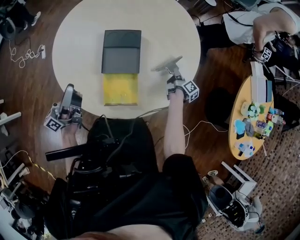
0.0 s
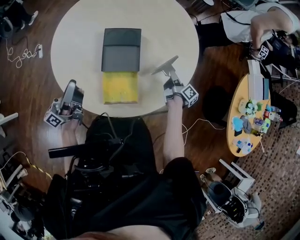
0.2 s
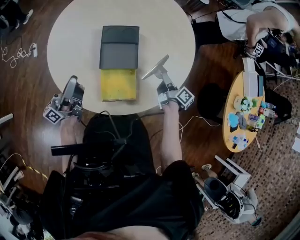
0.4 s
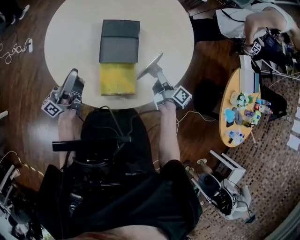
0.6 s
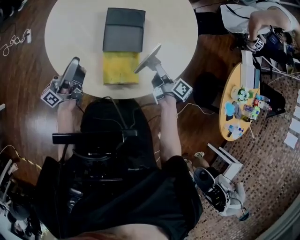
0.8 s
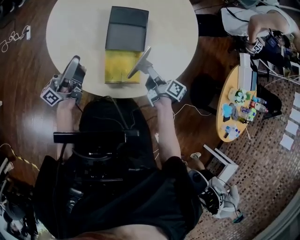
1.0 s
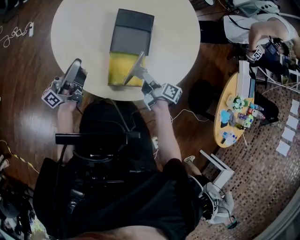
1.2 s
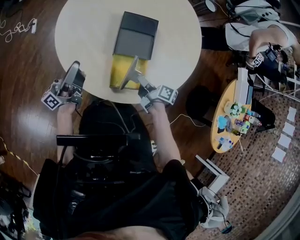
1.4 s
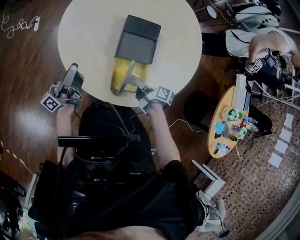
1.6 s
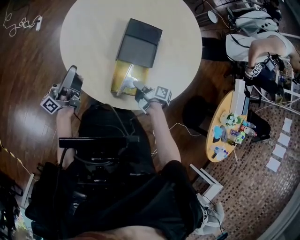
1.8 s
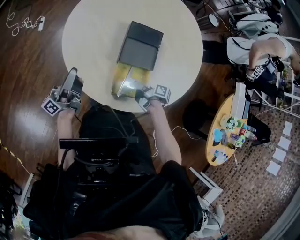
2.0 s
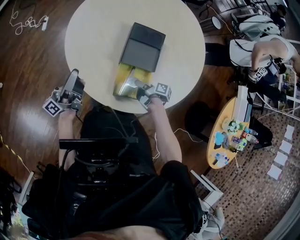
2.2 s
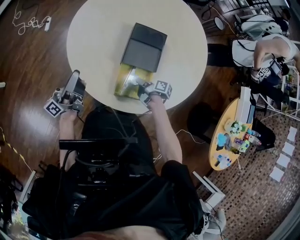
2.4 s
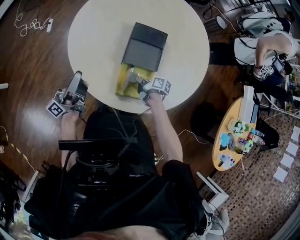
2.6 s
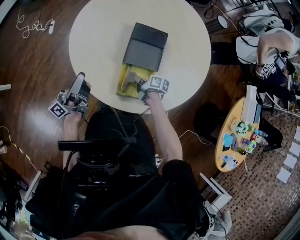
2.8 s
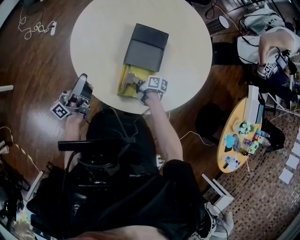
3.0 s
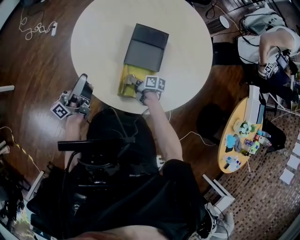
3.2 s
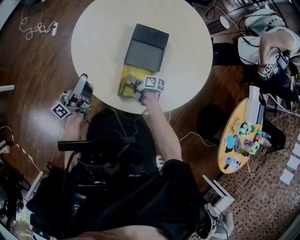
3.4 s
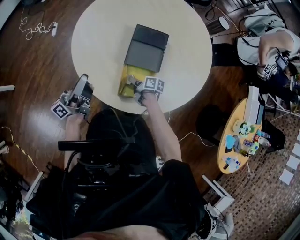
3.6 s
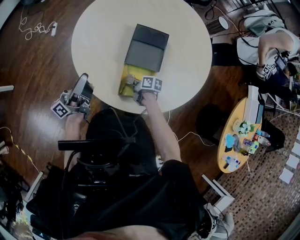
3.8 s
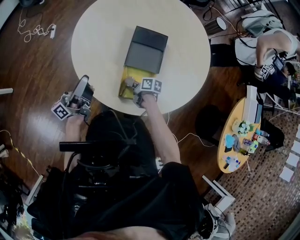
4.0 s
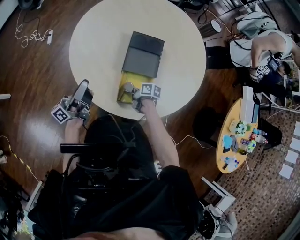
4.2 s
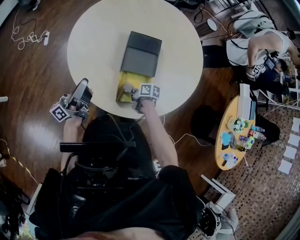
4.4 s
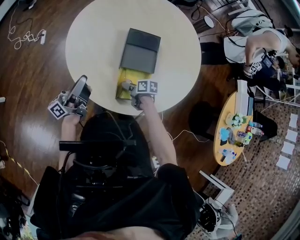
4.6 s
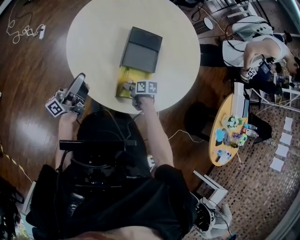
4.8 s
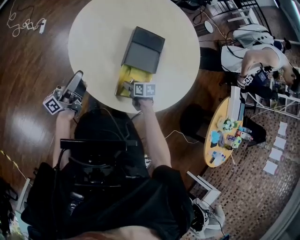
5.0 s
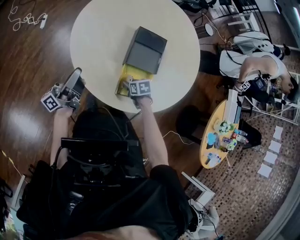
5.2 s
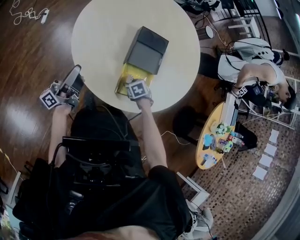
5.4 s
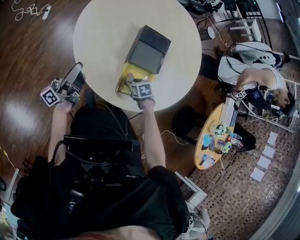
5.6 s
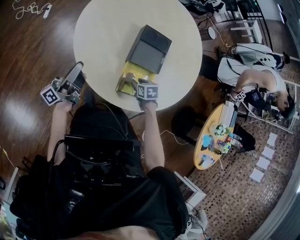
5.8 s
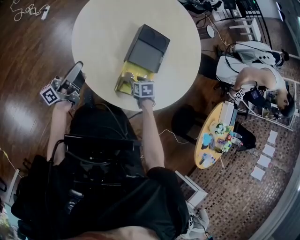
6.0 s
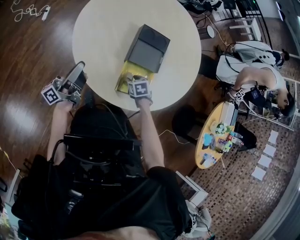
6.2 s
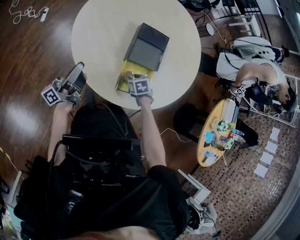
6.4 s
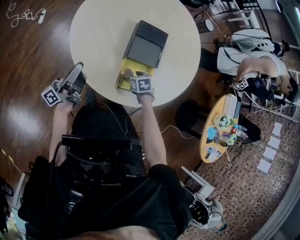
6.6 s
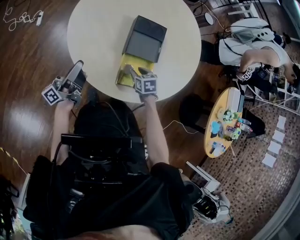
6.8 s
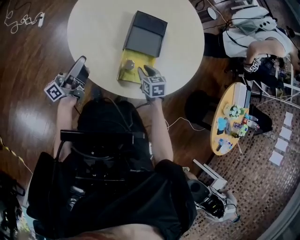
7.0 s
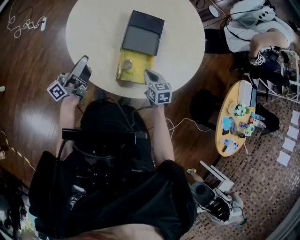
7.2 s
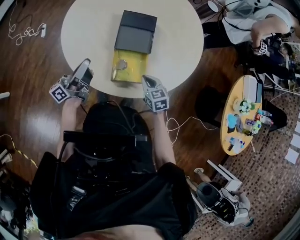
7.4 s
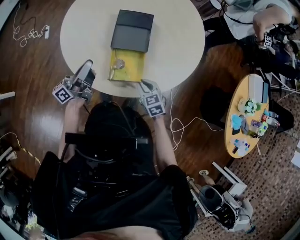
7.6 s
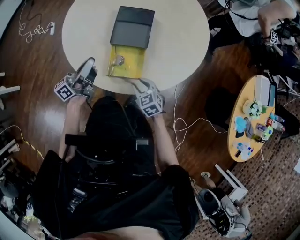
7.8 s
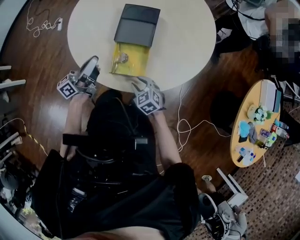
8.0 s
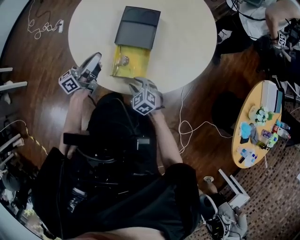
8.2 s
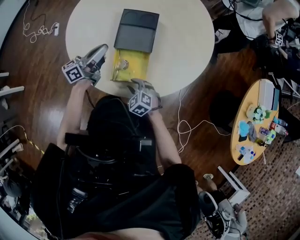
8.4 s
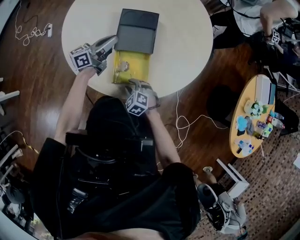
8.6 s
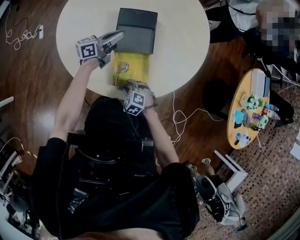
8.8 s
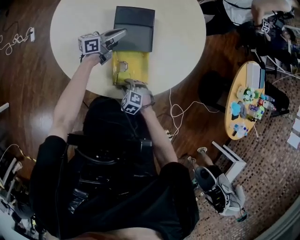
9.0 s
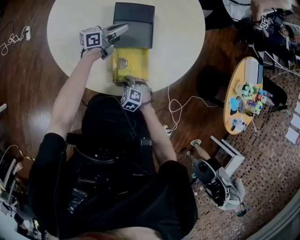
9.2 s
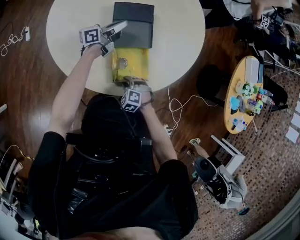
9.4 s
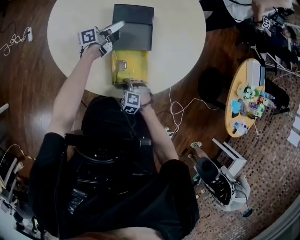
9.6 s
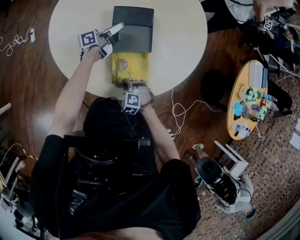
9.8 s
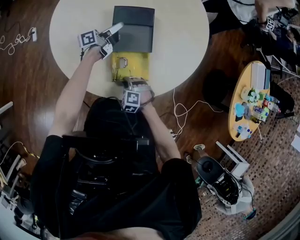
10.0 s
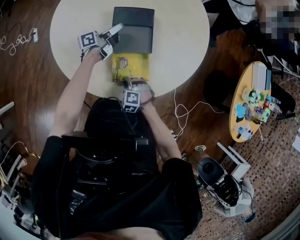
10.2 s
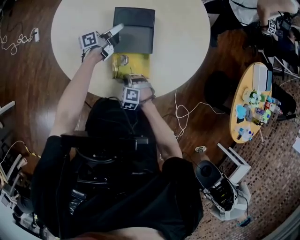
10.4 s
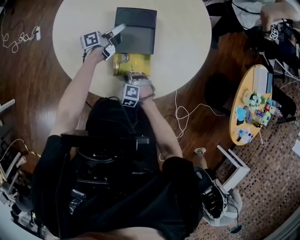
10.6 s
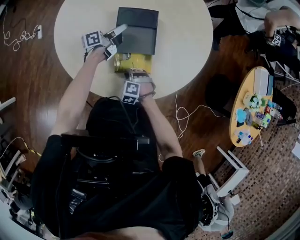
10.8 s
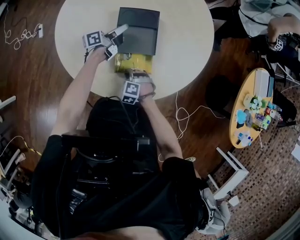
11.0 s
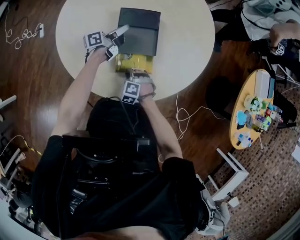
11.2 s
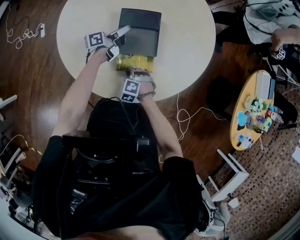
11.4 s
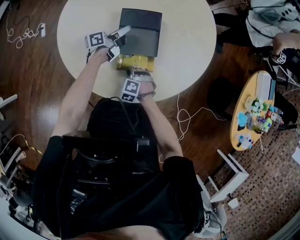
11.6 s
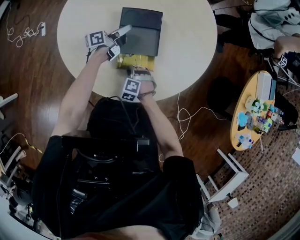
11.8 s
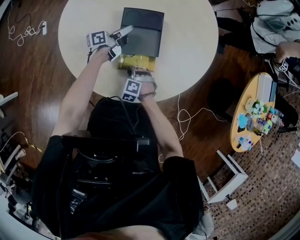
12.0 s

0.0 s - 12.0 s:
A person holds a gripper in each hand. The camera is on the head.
0.0 s - 1.6 s: The right gripper ends up approximately 35 cm from where it was, and swivels approximately 40 degrees; the left gripper ends up about 10 cm from where it was.
1.6 s - 3.0 s: The right gripper goes approximately 10 cm downward and forward.
3.0 s - 4.4 s: The right gripper opens up.
4.4 s - 6.0 s: The left gripper ends up roughly 5 cm from where it was. Meanwhile the right gripper swivels about 50 degrees.
6.0 s - 7.6 s: The left gripper is displaced to the right by some 15 cm. Meanwhile the right gripper moves backward, to the right and upward, roughly 15 cm, turns by some 30 degrees, and closes.
7.6 s - 9.0 s: The left gripper goes some 25 cm forward, downward and to the right, and turns by roughly 30 degrees; the right gripper shifts roughly 15 cm to the left and downward, and turns by approximately 40 degrees.
9.0 s - 10.4 s: The left gripper moves roughly 5 cm, and rotates roughly 20 degrees. The right gripper closes its fingers.
10.4 s - 12.0 s: The right gripper moves forward, approximately 5 cm.

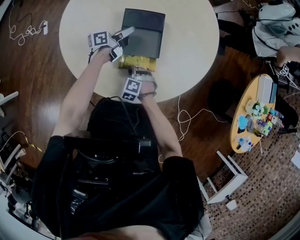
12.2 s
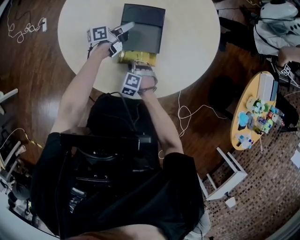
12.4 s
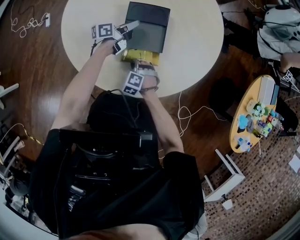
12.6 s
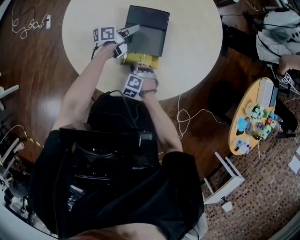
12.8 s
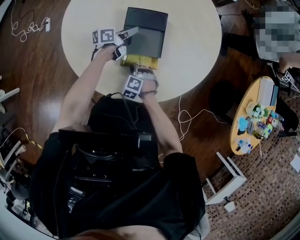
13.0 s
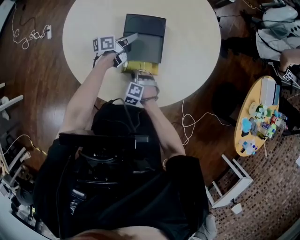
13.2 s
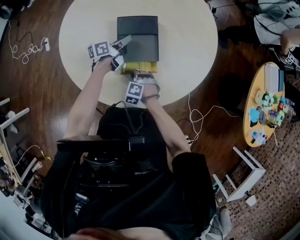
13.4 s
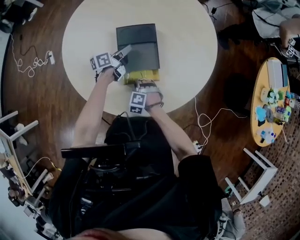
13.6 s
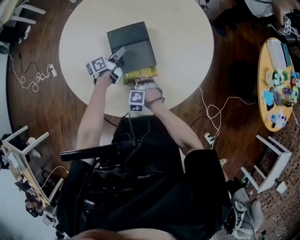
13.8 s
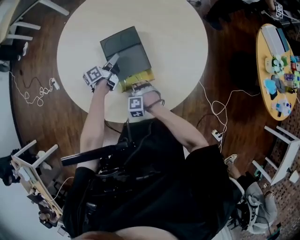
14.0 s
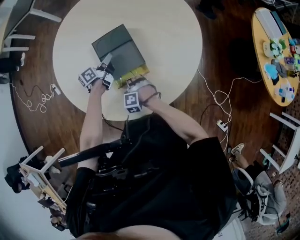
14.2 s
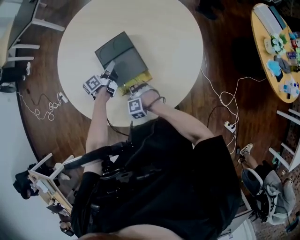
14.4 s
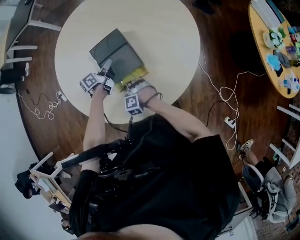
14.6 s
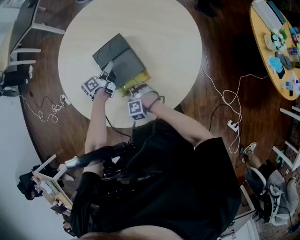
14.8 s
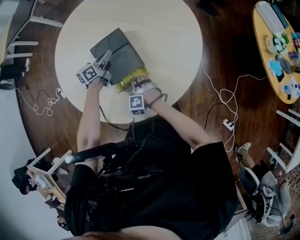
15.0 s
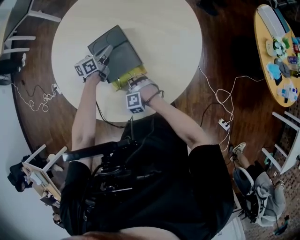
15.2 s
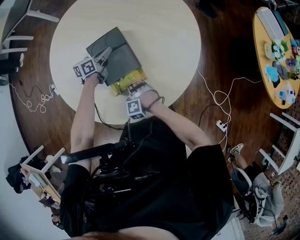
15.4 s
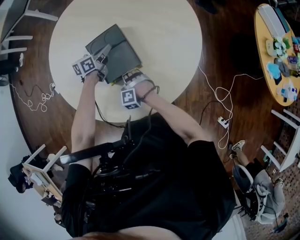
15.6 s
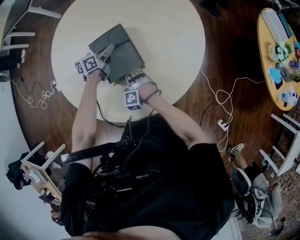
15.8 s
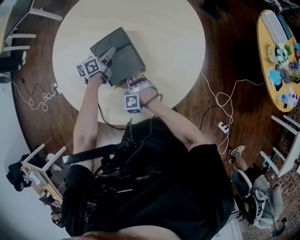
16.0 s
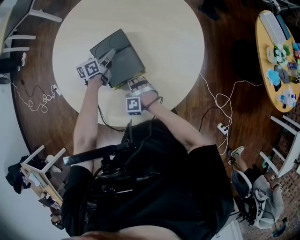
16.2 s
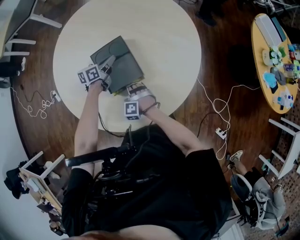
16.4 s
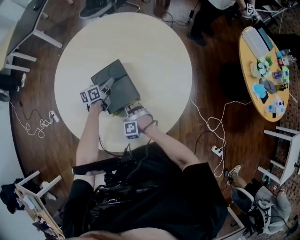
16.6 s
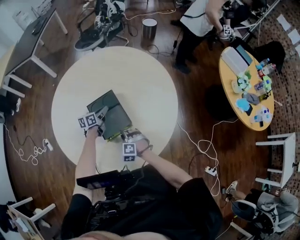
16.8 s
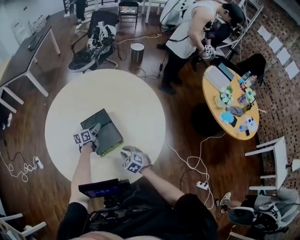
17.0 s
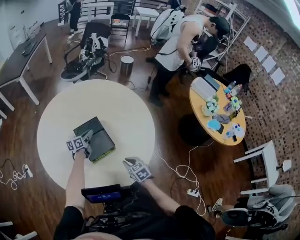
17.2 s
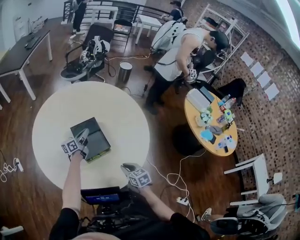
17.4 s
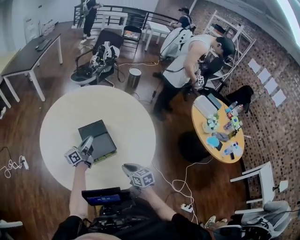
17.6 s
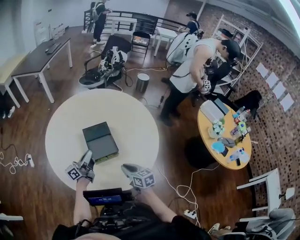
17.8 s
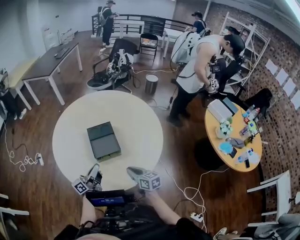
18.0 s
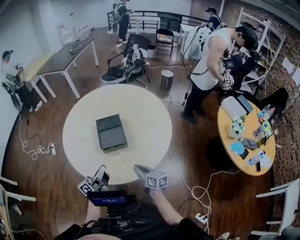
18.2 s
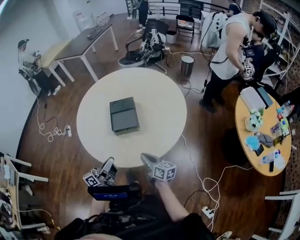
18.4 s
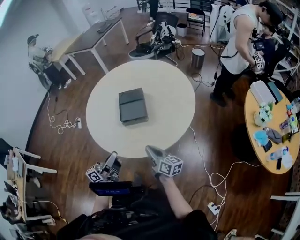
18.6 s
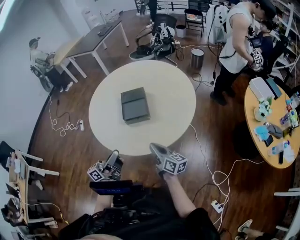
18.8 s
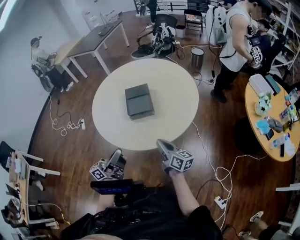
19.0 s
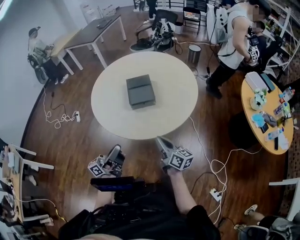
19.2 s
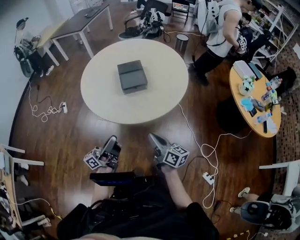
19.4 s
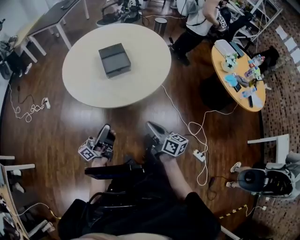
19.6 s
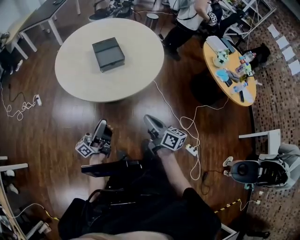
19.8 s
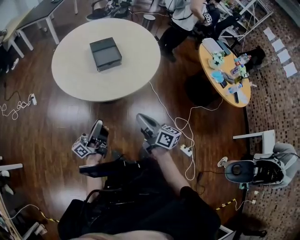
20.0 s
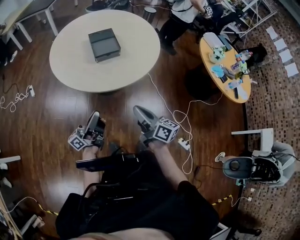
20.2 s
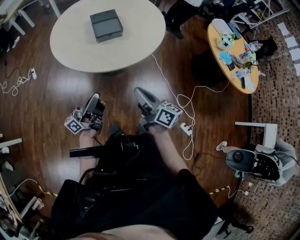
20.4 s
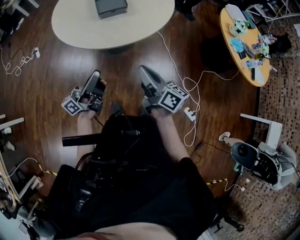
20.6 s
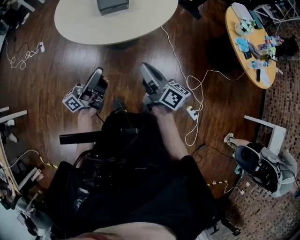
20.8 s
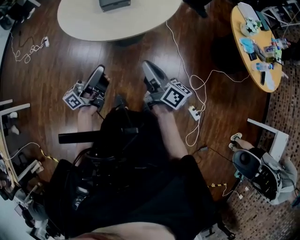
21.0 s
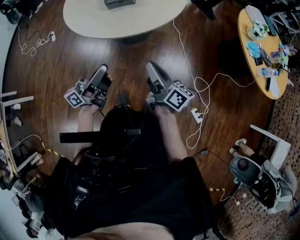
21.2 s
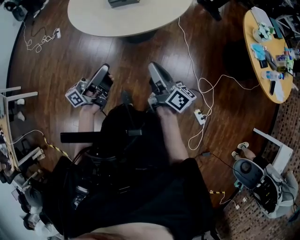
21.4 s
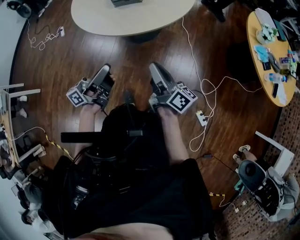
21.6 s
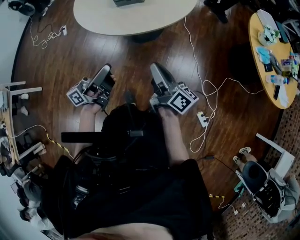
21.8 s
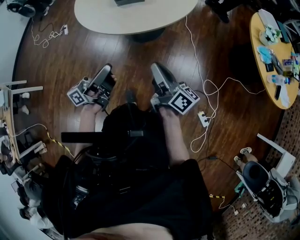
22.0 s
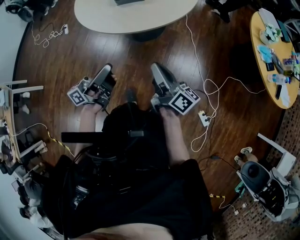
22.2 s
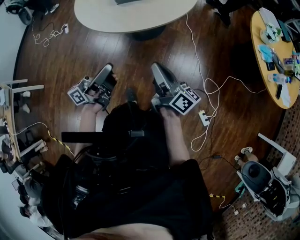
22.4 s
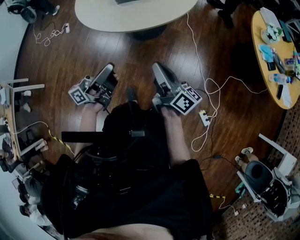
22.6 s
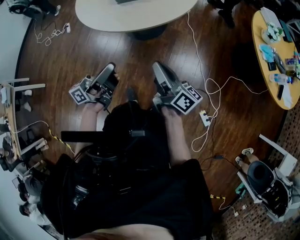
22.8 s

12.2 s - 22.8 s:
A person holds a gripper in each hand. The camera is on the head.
12.2 s - 13.8 s: The grippers move only a little.
13.8 s - 15.2 s: The left gripper shifts by roughly 5 cm, and turns by about 30 degrees.
15.2 s - 16.8 s: The right gripper moves about 5 cm, and rotates some 20 degrees.
16.8 s - 18.2 s: The right gripper heads to the right, upward and backward, covering some 25 cm, and twists approximately 80 degrees clockwise, seen from behind, while the left gripper goes approximately 40 cm backward and upward, and angles its fingers upward, by approximately 40 degrees.
18.2 s - 19.8 s: Both grippers move backward, roughly 30 cm.
19.8 s - 21.2 s: Both grippers move to the right, approximately 10 cm.
21.2 s - 22.8 s: The left gripper moves about 5 cm.

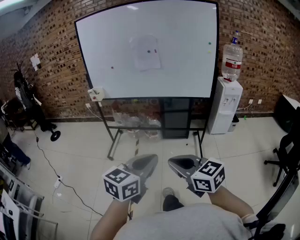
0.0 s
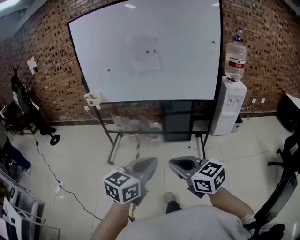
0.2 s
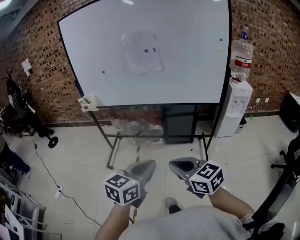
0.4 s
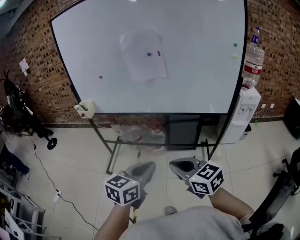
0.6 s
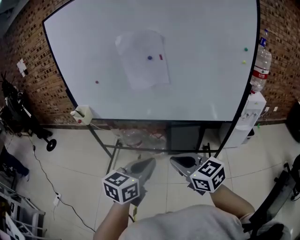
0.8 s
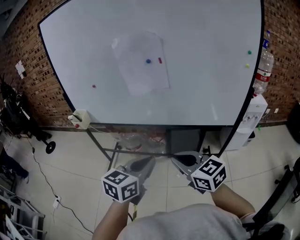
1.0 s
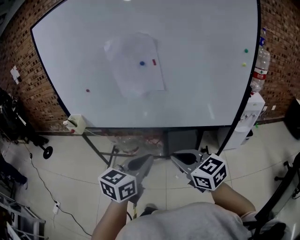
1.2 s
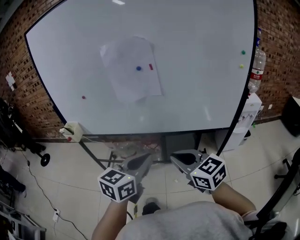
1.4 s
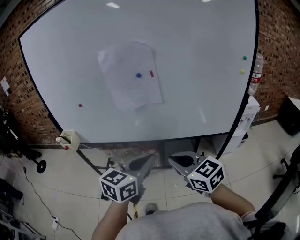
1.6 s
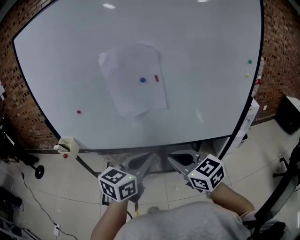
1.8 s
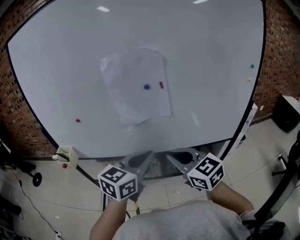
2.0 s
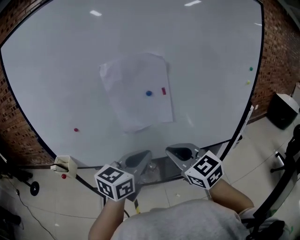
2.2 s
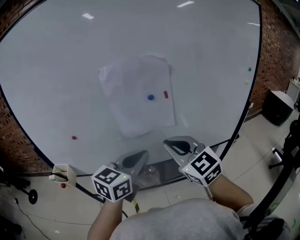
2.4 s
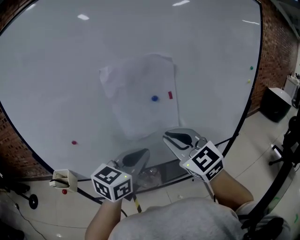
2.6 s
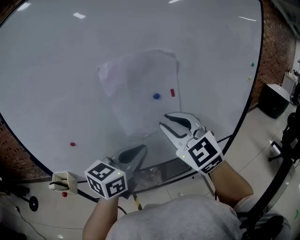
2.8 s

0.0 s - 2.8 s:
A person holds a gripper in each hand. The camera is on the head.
0.0 s - 1.4 s: The two grippers travel together, forward, about 50 cm.
1.4 s - 2.8 s: The right gripper heads forward, upward and to the left, covering some 30 cm, and swivels roughly 50 degrees. Meanwhile the left gripper moves forward and to the left, approximately 25 cm, and swivels approximately 20 degrees.
